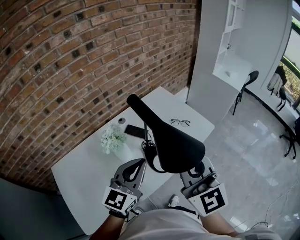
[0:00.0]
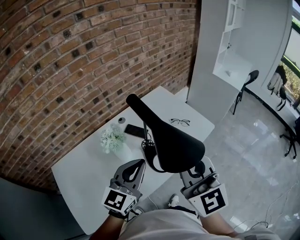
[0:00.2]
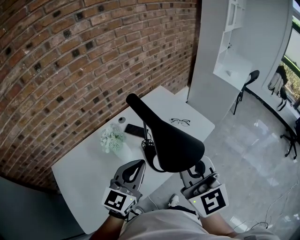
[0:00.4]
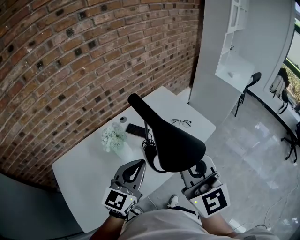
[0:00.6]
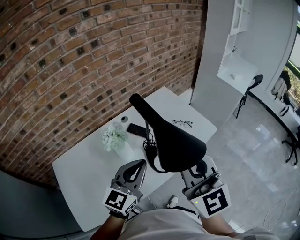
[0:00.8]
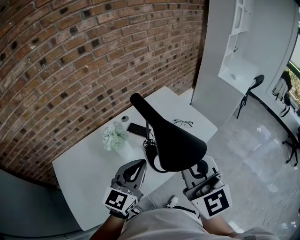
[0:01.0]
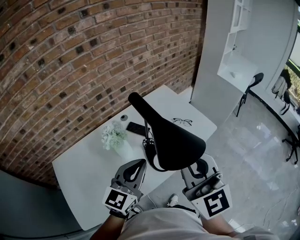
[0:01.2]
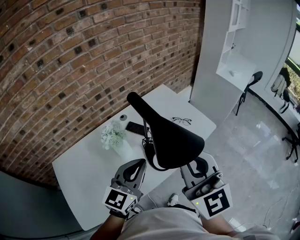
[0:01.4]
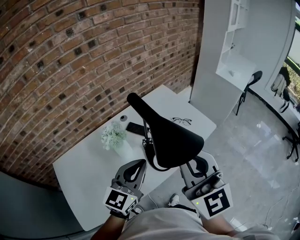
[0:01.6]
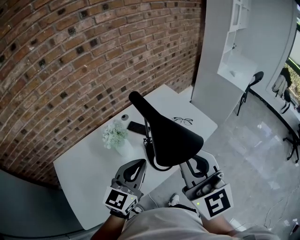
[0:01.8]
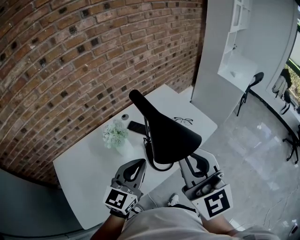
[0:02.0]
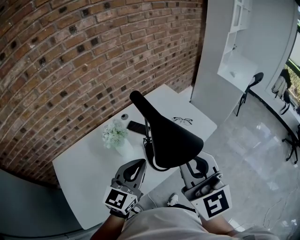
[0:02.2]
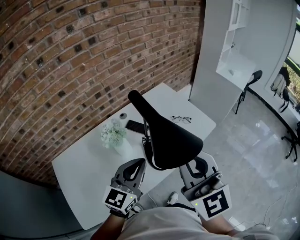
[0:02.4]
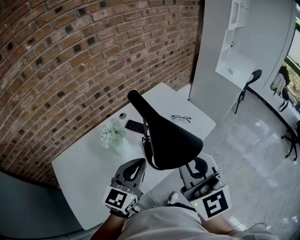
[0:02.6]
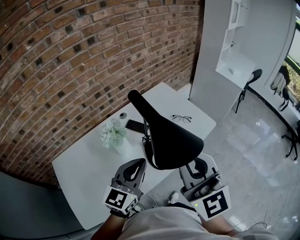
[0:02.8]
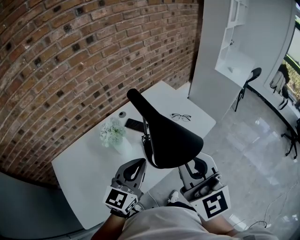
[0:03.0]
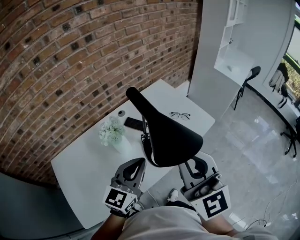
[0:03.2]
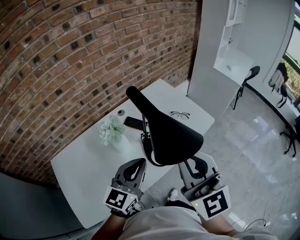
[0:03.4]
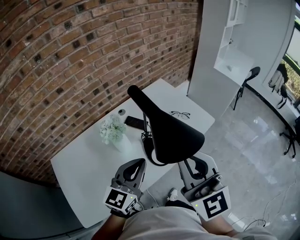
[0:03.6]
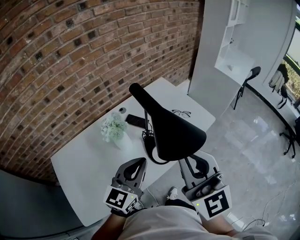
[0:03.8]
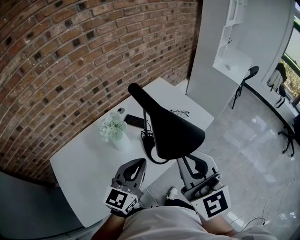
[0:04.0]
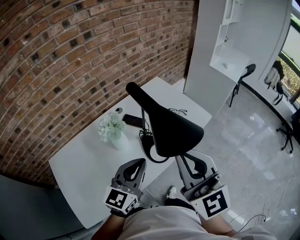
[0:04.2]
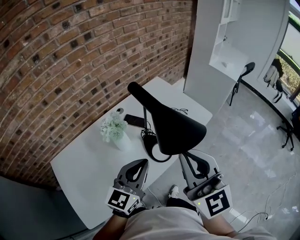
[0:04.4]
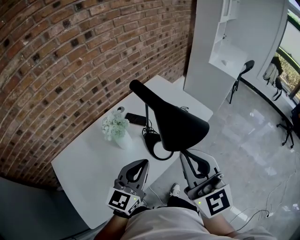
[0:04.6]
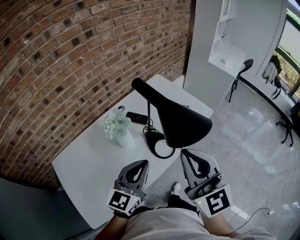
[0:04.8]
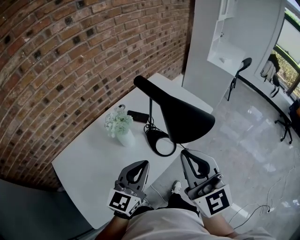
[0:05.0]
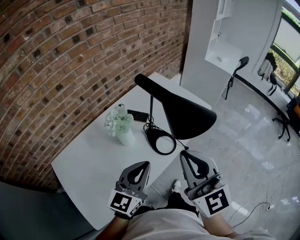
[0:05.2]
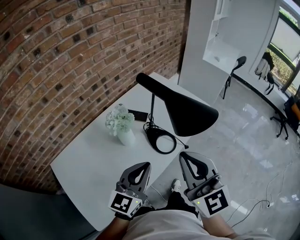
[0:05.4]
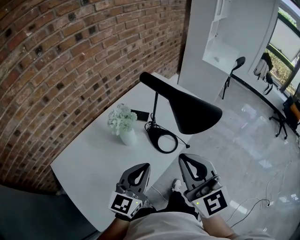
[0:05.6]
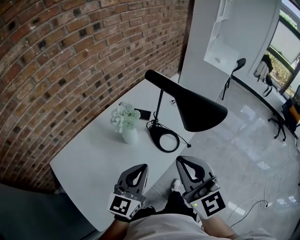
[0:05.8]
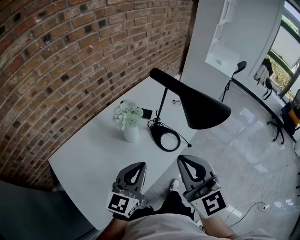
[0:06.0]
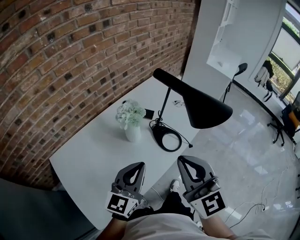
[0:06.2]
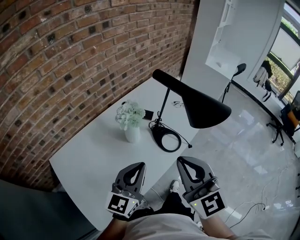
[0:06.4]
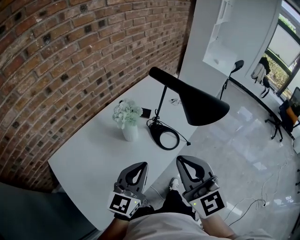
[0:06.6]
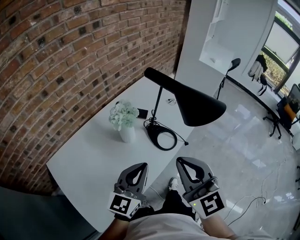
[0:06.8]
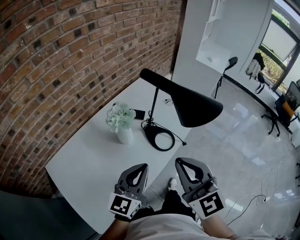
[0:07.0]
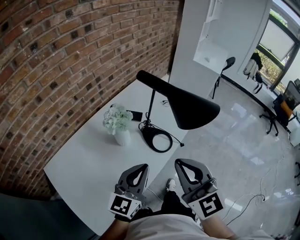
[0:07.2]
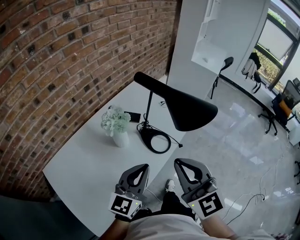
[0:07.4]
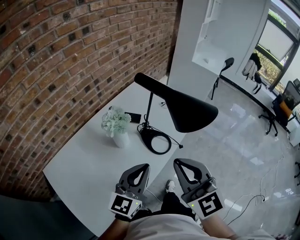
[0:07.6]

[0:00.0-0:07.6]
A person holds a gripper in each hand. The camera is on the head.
0.0 to 1.6 s: The grippers move only a little.
1.6 to 3.0 s: Both grippers stay put.
3.0 to 4.6 s: The grippers move only a little.
4.6 to 6.0 s: The grippers both shift to the left and backward by about 10 cm.
6.0 to 7.6 s: The grippers stay close to where they were, moving slightly.

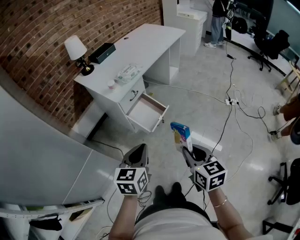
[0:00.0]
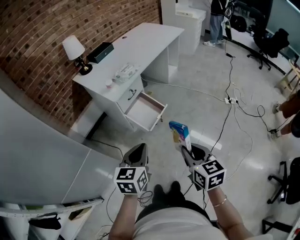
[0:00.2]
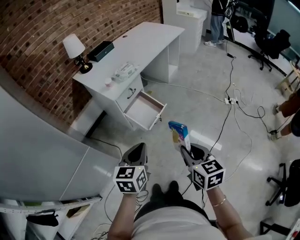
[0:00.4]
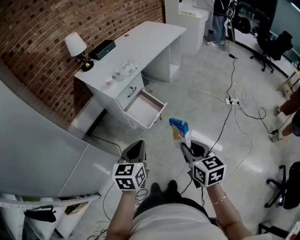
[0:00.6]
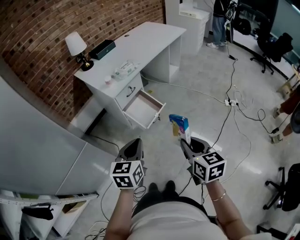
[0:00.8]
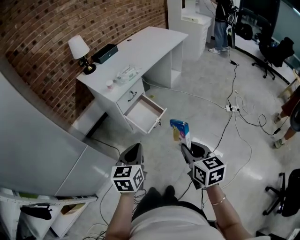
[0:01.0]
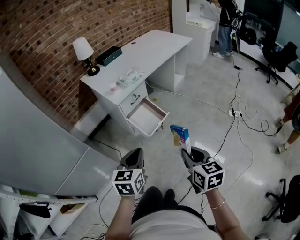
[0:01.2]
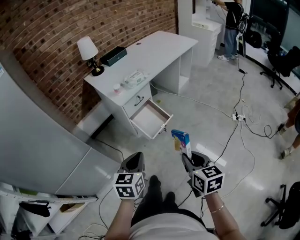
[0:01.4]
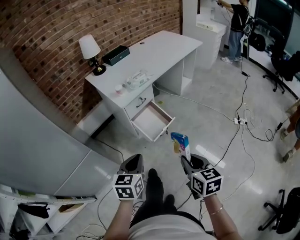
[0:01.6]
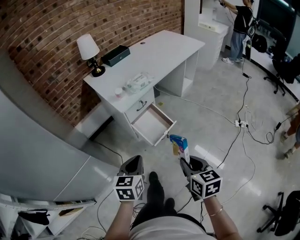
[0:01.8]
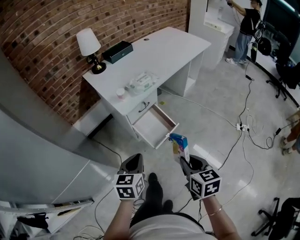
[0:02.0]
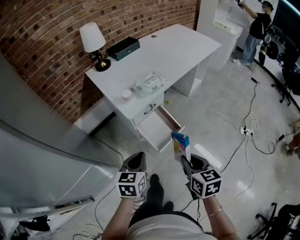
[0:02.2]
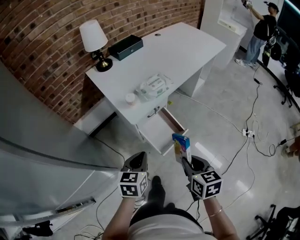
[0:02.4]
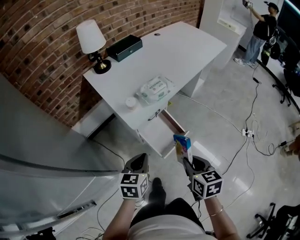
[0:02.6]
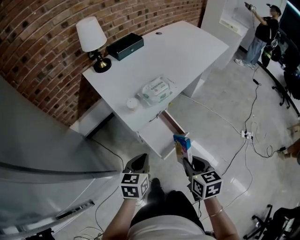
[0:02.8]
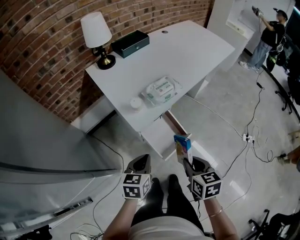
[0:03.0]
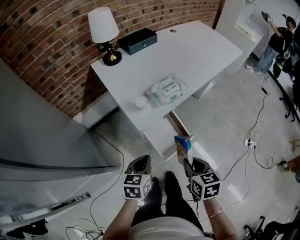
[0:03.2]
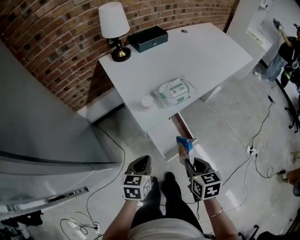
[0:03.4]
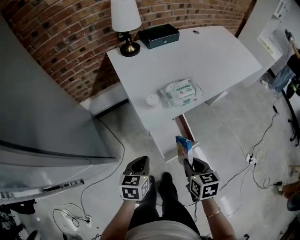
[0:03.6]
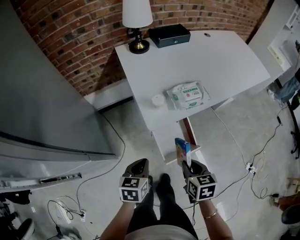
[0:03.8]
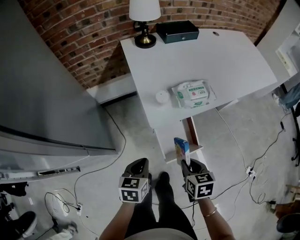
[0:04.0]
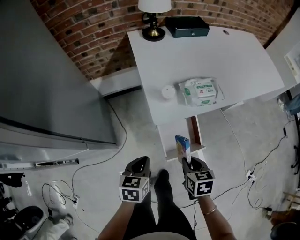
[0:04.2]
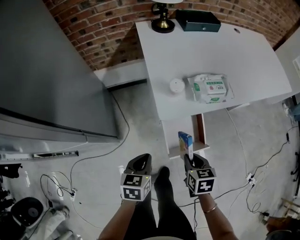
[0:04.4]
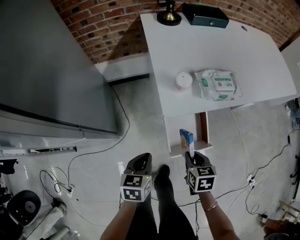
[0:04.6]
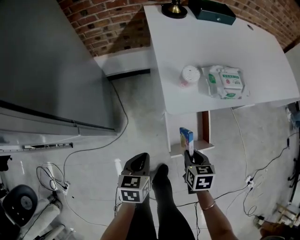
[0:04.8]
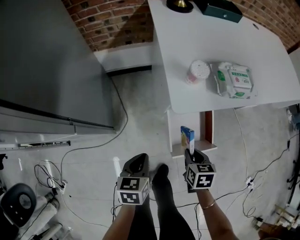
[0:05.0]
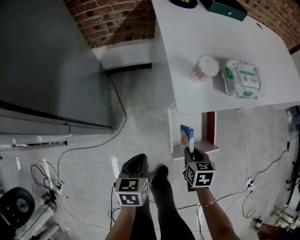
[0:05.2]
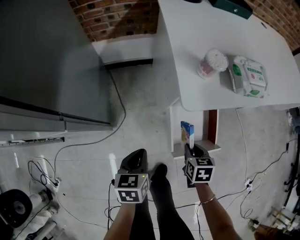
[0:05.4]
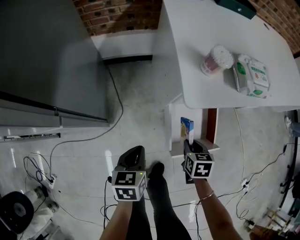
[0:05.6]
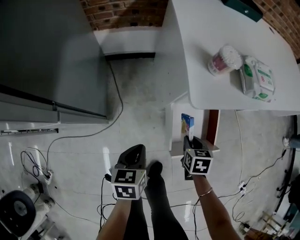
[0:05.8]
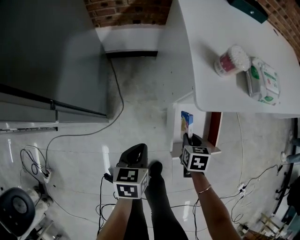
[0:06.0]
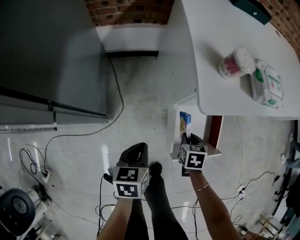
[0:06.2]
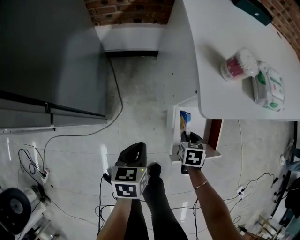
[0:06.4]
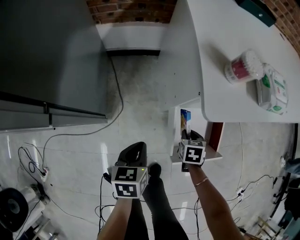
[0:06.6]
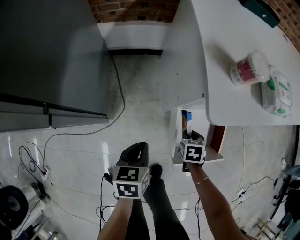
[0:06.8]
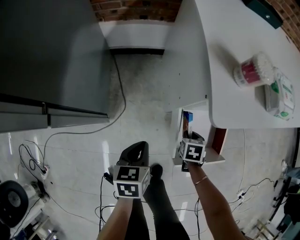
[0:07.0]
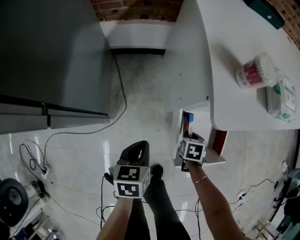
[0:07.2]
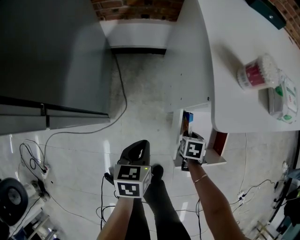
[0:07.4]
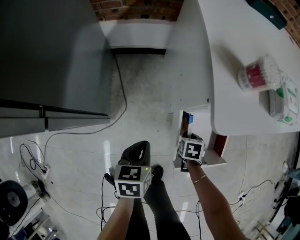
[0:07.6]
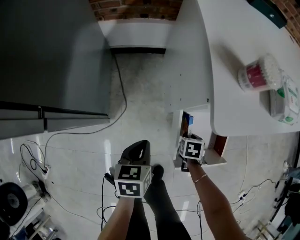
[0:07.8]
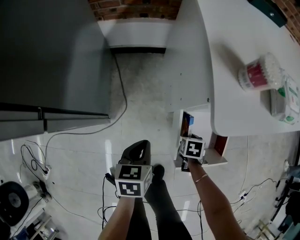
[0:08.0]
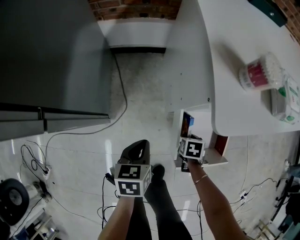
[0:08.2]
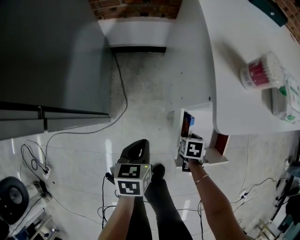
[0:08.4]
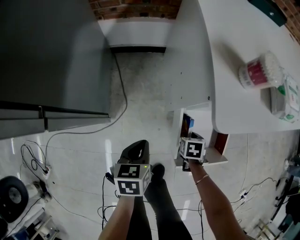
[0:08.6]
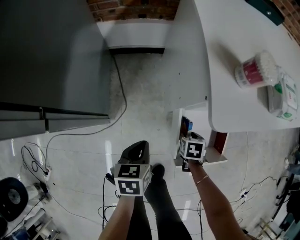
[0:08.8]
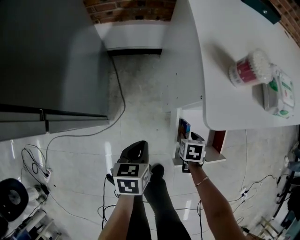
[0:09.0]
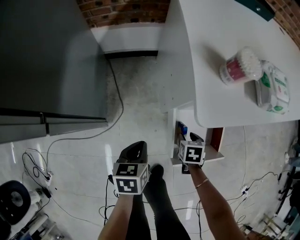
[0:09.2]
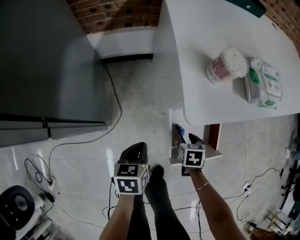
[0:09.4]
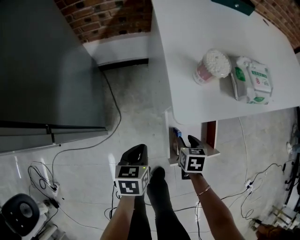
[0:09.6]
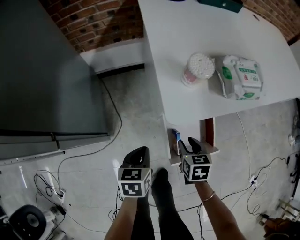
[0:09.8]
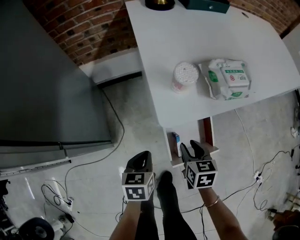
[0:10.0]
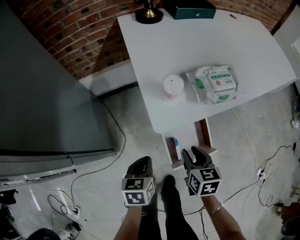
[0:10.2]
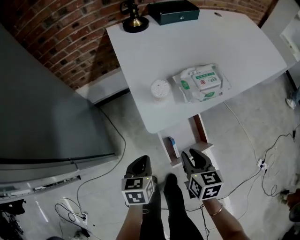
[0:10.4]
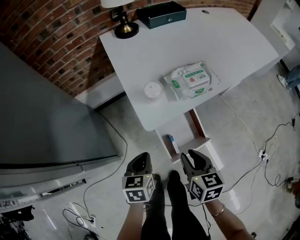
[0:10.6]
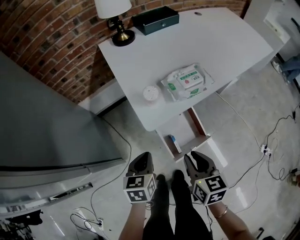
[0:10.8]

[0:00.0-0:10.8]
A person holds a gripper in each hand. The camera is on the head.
0.0 to 1.6 s: The right gripper shifts by about 5 cm.
1.6 to 3.0 s: The two grippers go about 35 cm forward.
3.0 to 4.6 s: The two grippers go some 20 cm downward. The right gripper turns by about 30 degrees; the left gripper turns by roughly 30 degrees.
4.6 to 6.2 s: The two grippers go approximately 20 cm downward.
6.2 to 7.8 s: The right gripper moves downward, roughly 10 cm. The left gripper changes place by approximately 5 cm.
7.8 to 9.2 s: The right gripper opens up.
9.2 to 10.8 s: The right gripper is displaced upward by about 40 cm, and angles its fingers upward, by some 30 degrees. The left gripper goes roughly 25 cm upward, and turns by about 20 degrees.

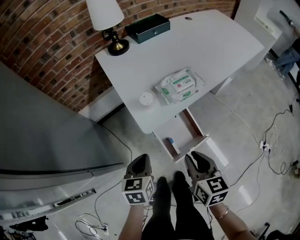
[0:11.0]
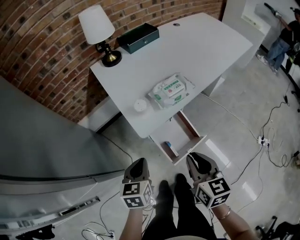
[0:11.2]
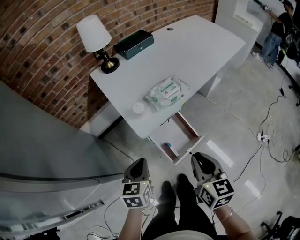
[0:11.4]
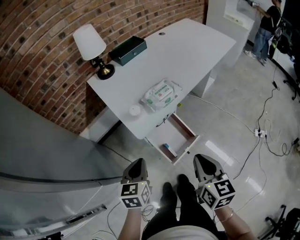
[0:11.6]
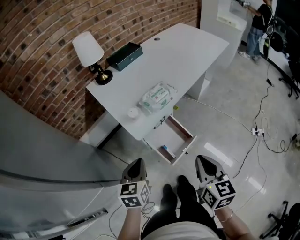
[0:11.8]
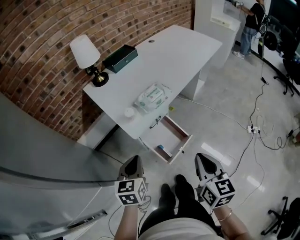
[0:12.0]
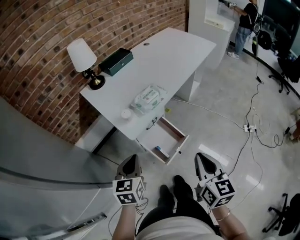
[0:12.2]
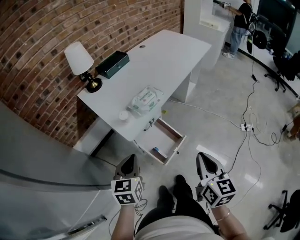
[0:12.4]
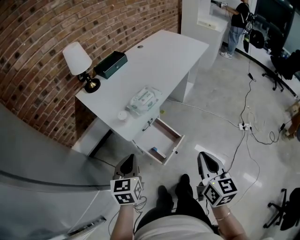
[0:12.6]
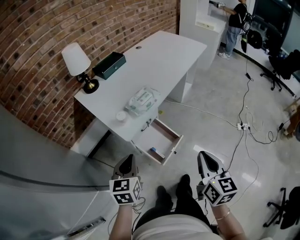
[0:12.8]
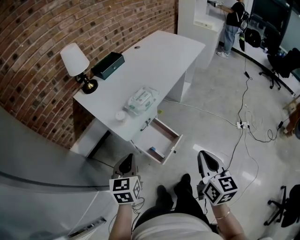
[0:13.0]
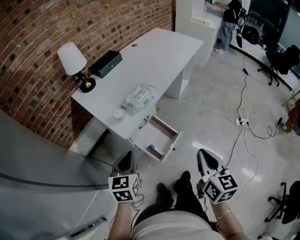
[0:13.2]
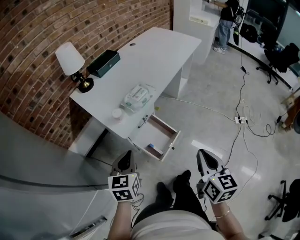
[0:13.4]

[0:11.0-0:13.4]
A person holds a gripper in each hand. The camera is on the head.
11.0 to 12.2 s: The right gripper heads upward, backward and to the right, covering about 25 cm, turns by some 30 degrees, and closes. Meanwhile the left gripper is displaced upward and backward by roughly 15 cm.
12.2 to 13.4 s: The grippers make only small movements.

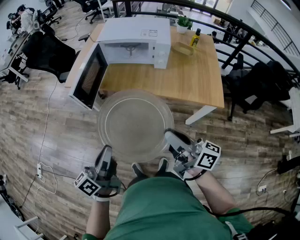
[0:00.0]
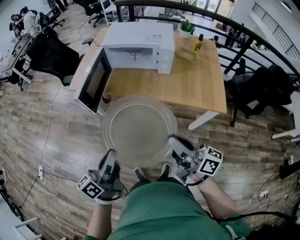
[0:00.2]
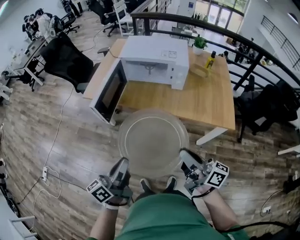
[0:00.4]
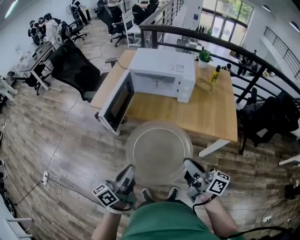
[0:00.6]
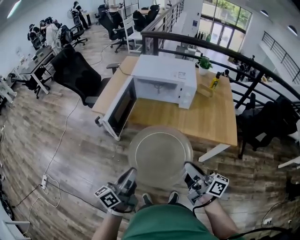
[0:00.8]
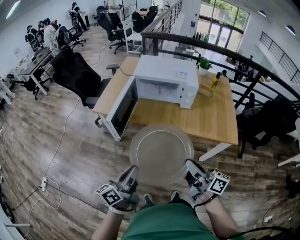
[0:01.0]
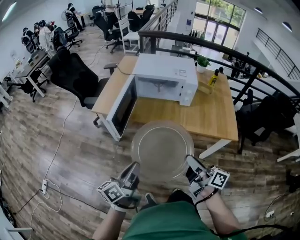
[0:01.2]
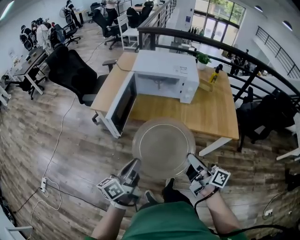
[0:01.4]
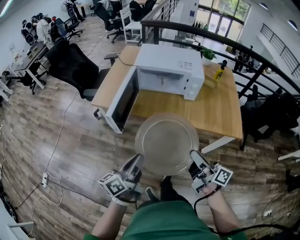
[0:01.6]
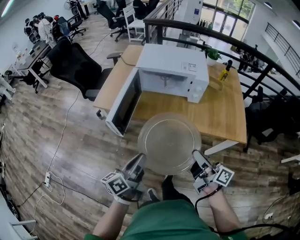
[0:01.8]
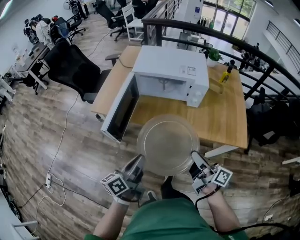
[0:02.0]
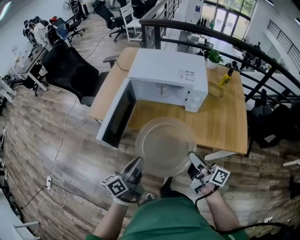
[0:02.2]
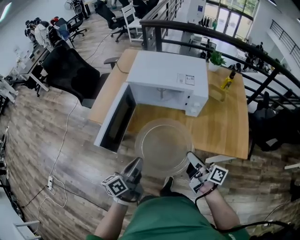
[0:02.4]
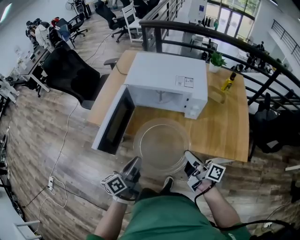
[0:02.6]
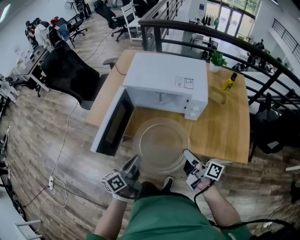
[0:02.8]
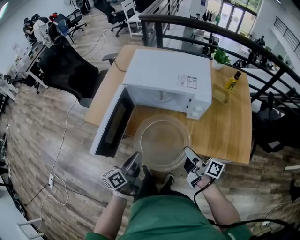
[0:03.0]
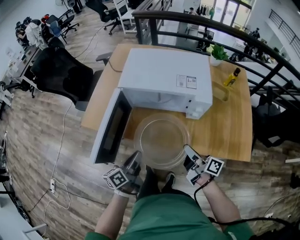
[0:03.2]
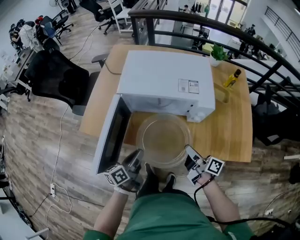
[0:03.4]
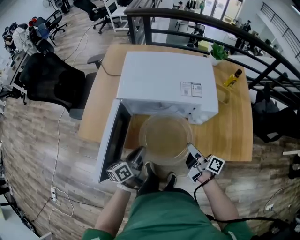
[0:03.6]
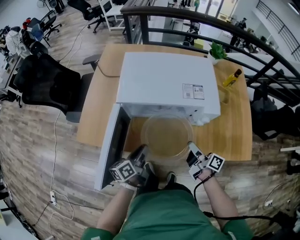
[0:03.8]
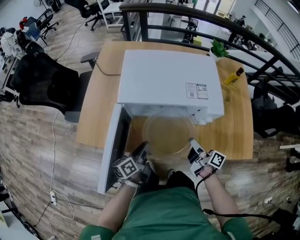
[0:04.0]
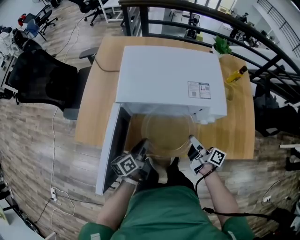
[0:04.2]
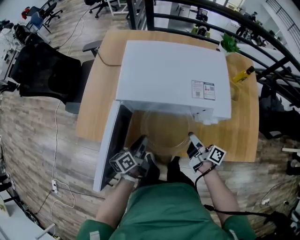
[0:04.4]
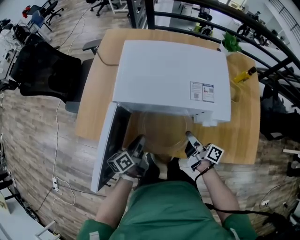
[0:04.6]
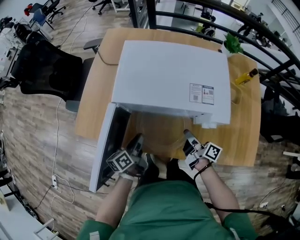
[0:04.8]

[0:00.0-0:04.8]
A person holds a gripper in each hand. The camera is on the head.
0.0 to 1.6 s: The left gripper shifts about 10 cm forward and to the left. Meanwhile the right gripper shifts approximately 5 cm to the left.
1.6 to 3.2 s: The right gripper goes some 30 cm forward and downward. Meanwhile the left gripper shifts approximately 25 cm forward.
3.2 to 4.8 s: Both grippers travel together forward and downward, roughly 20 cm.
